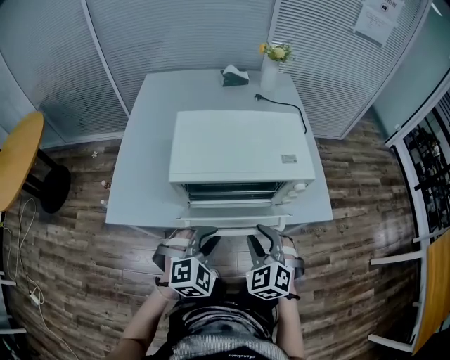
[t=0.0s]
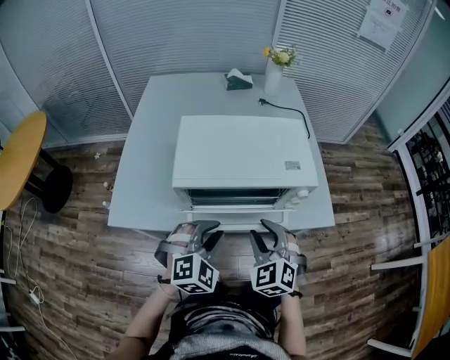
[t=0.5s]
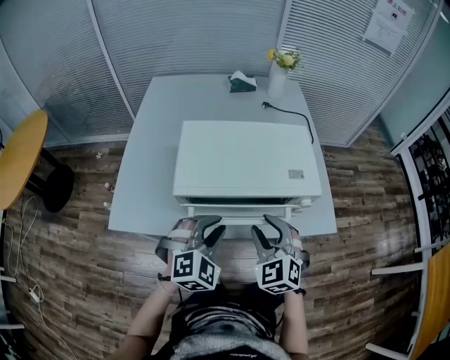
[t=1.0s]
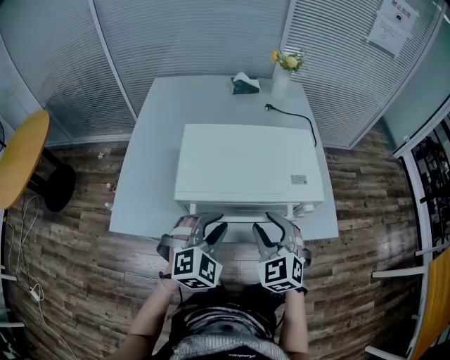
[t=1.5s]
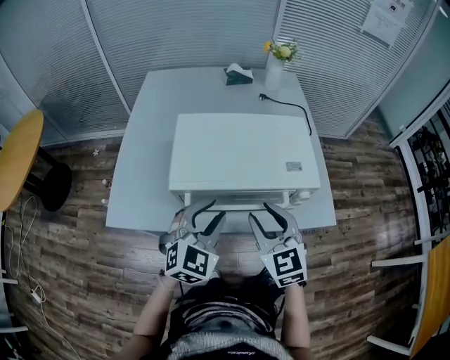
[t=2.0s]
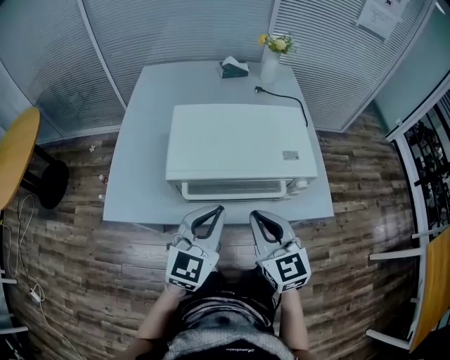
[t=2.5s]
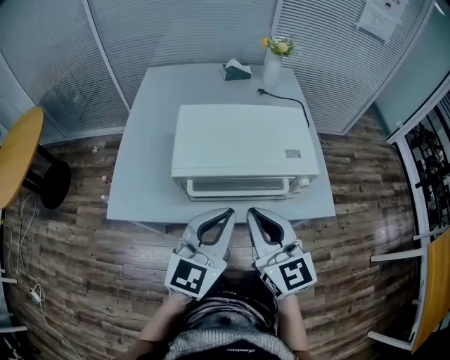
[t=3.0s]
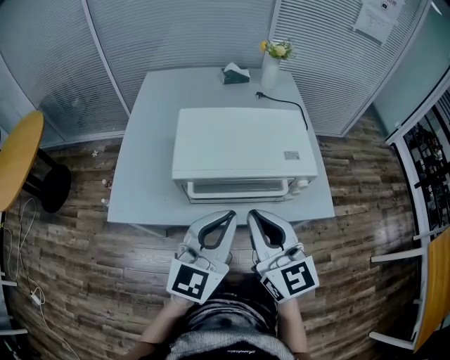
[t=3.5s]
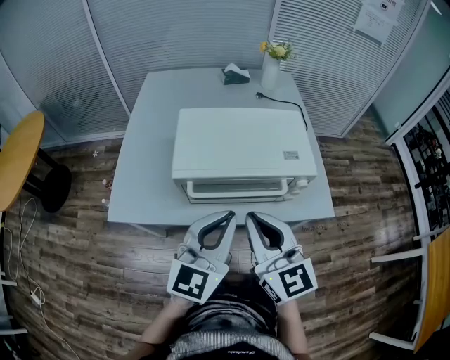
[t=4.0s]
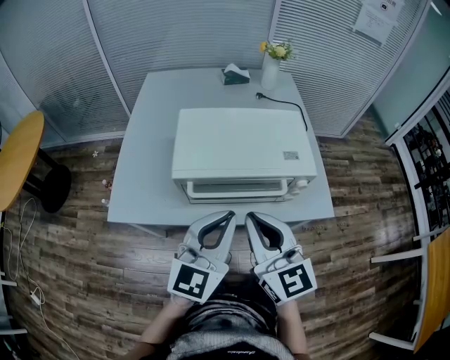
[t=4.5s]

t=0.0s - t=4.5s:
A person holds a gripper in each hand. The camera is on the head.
t=0.0s - t=2.0s: The left gripper heads forward and upward, covering approximately 10 cm, and rotates about 20 degrees. The right gripper goes approximately 10 cm upward and forward, and rotates some 30 degrees.
t=2.0s - t=4.5s: The two grippers go some 10 cm upward and backward. The left gripper rotates roughly 30 degrees, and closes. Meanwhile the right gripper rotates some 20 degrees, and closes its fingers.

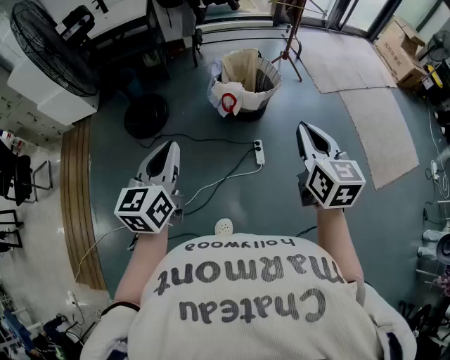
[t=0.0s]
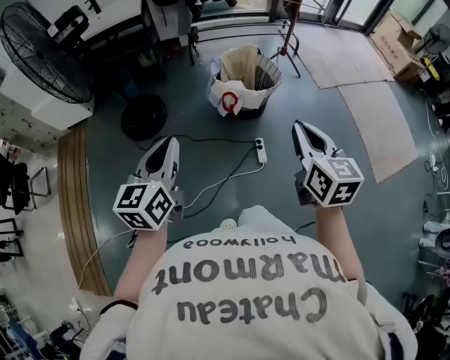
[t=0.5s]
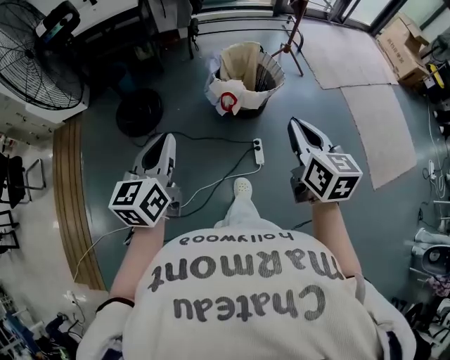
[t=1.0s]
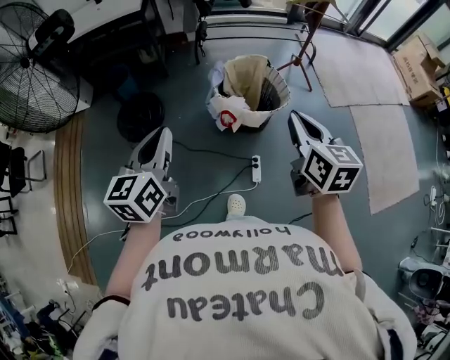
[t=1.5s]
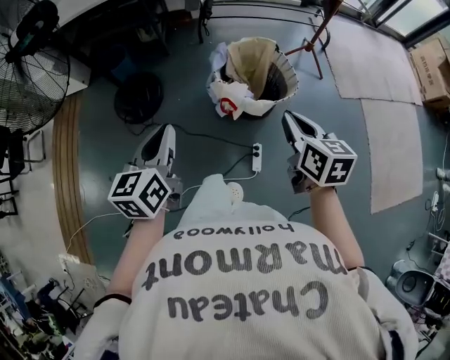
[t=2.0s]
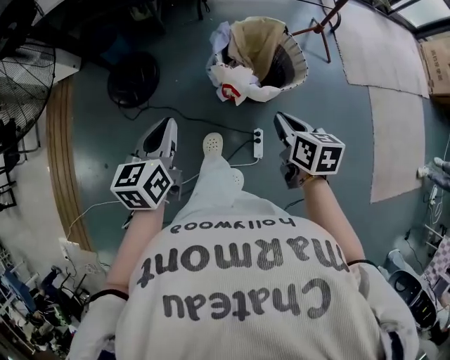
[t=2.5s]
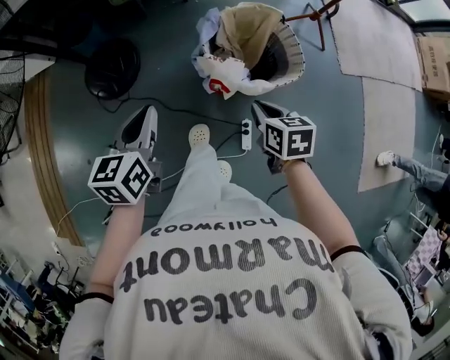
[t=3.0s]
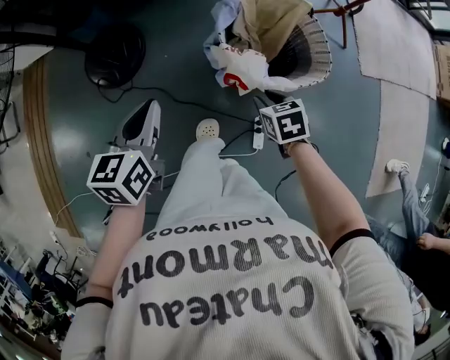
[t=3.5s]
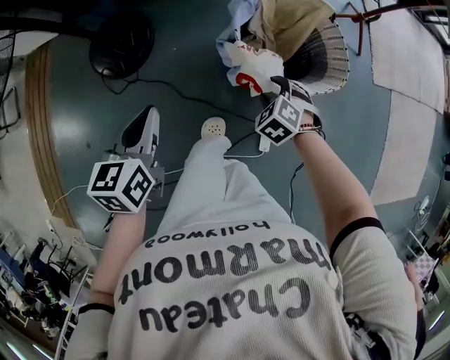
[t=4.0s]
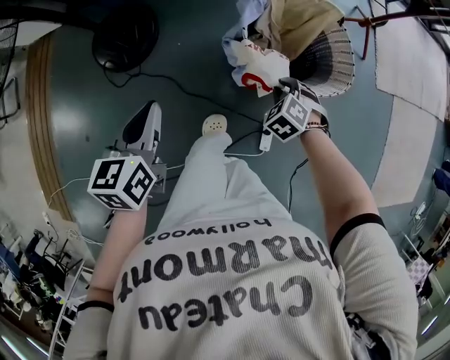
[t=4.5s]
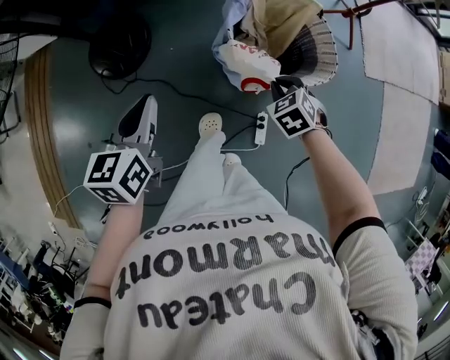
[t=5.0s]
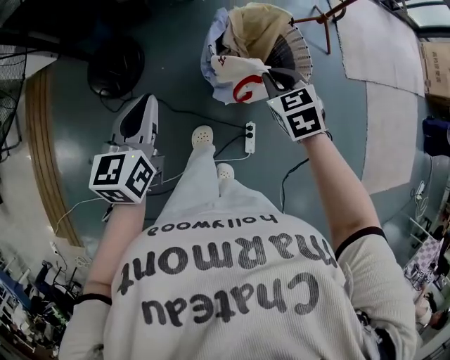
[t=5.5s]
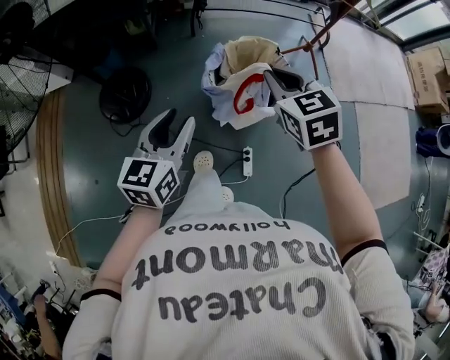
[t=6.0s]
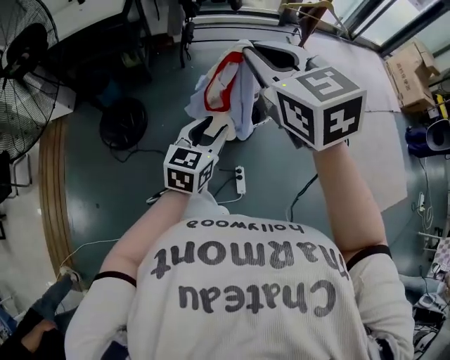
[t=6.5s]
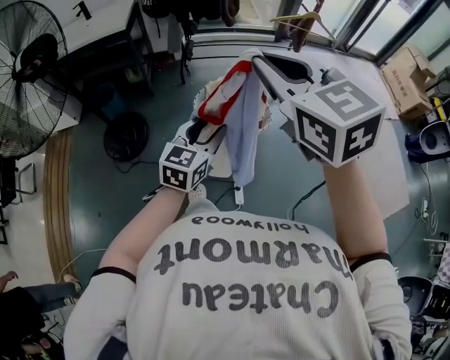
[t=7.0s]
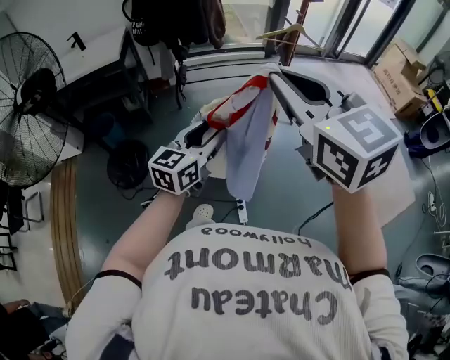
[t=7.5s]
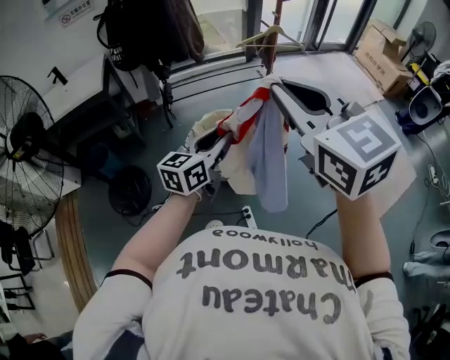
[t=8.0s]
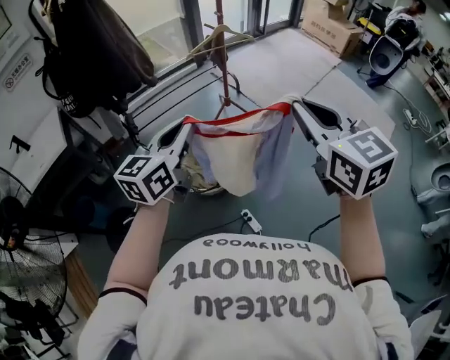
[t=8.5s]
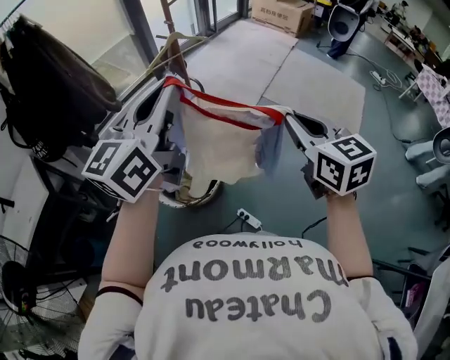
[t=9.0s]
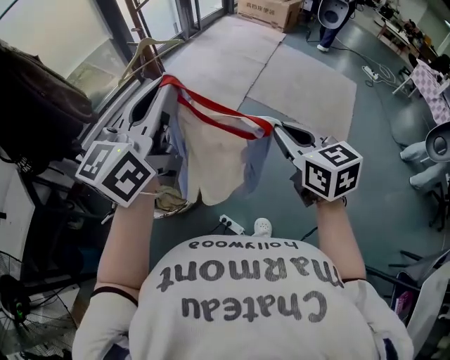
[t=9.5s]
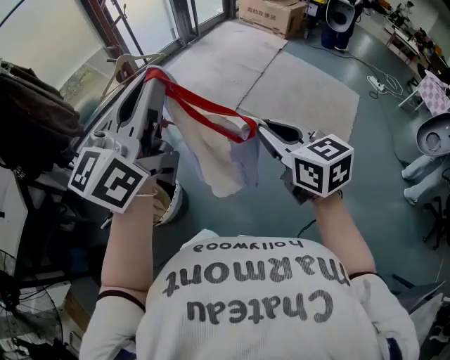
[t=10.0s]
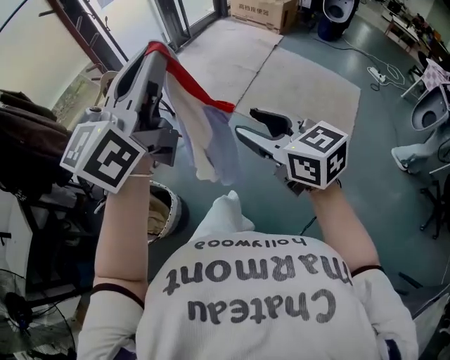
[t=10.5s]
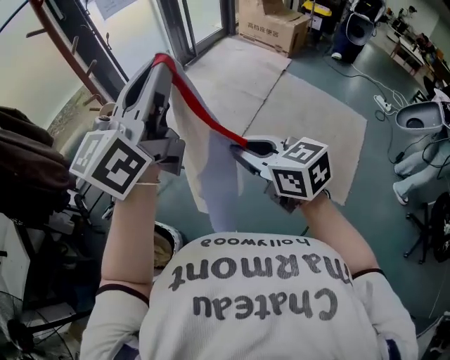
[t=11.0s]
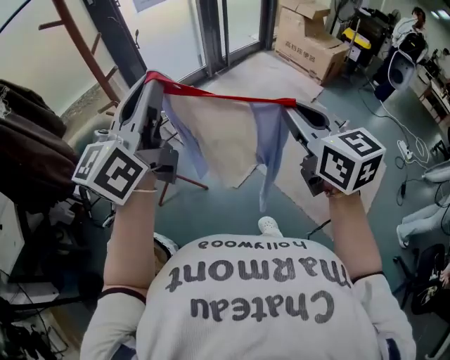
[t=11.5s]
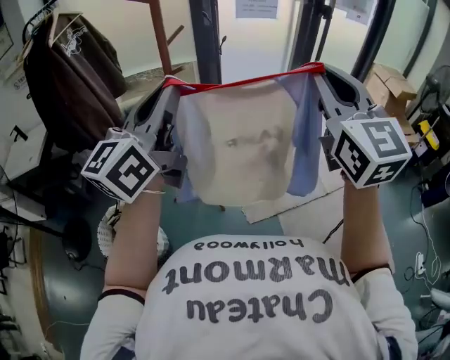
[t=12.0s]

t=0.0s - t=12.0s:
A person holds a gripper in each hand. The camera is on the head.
t=0.0s - t=2.0s: The right gripper shifts roughly 30 cm forward and downward, and rotates approximately 20 degrees. The left gripper shifts approximately 25 cm forward.
t=2.0s - t=4.0s: The right gripper heads downward and forward, covering approximately 40 cm, rolls counterclockwise, seen from behind, by approximately 60 degrees, and opens. The left gripper goes about 30 cm downward and forward.
t=4.0s - t=6.0s: The right gripper is displaced upward by approximately 40 cm, points its fingers roughly 30 degrees further upward, and closes up. The left gripper travels upward and to the right by approximately 20 cm, turns by approximately 20 degrees, and opens its fingers.
t=6.0s - t=8.0s: The left gripper is displaced to the right and upward by roughly 25 cm, and swivels some 30 degrees, while the right gripper shifts approximately 35 cm upward and to the right, and rotates some 30 degrees.
t=8.0s - t=10.0s: The left gripper changes place by about 40 cm, and swivels about 30 degrees; the right gripper changes place by about 40 cm, and swivels about 40 degrees.
t=10.0s - t=12.0s: Both grippers are carried roughly 50 cm. The right gripper swivels some 50 degrees, and opens, then closes again; the left gripper rotates some 40 degrees.

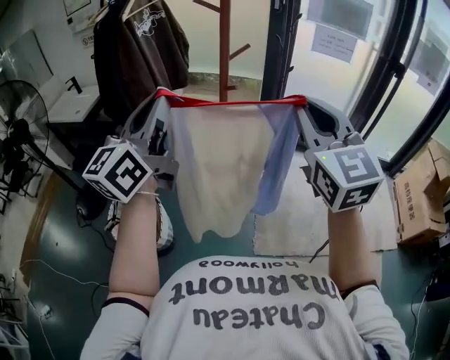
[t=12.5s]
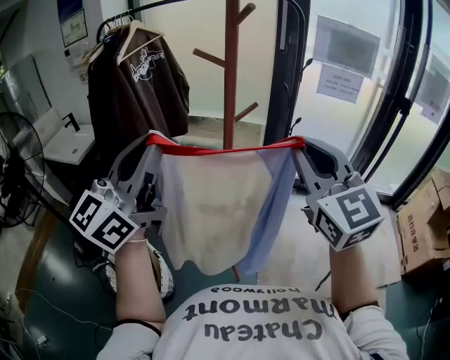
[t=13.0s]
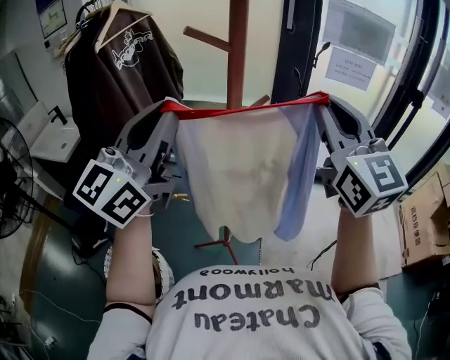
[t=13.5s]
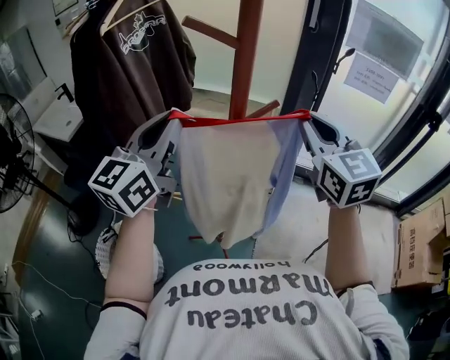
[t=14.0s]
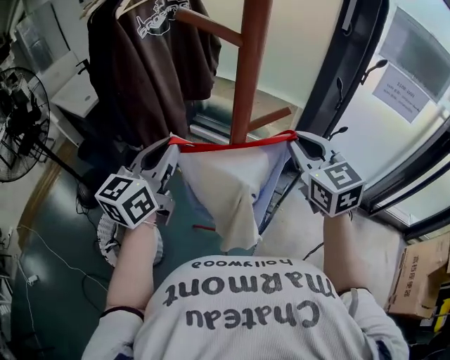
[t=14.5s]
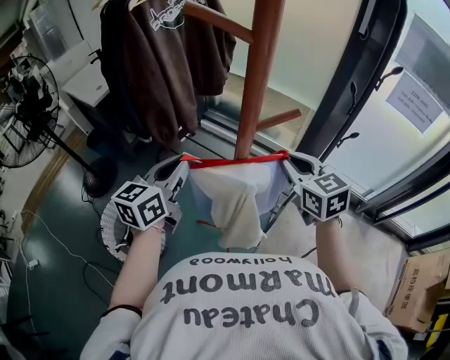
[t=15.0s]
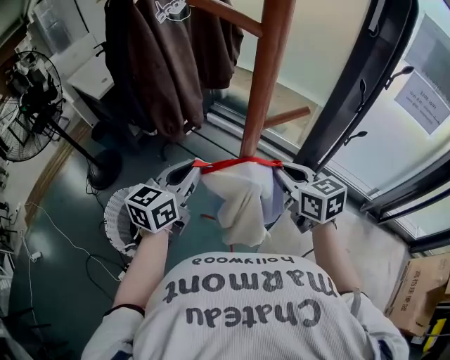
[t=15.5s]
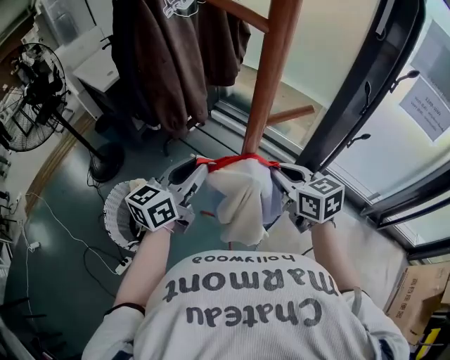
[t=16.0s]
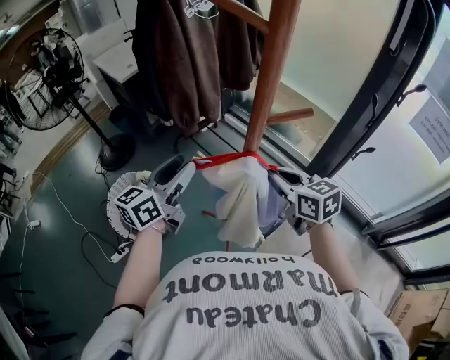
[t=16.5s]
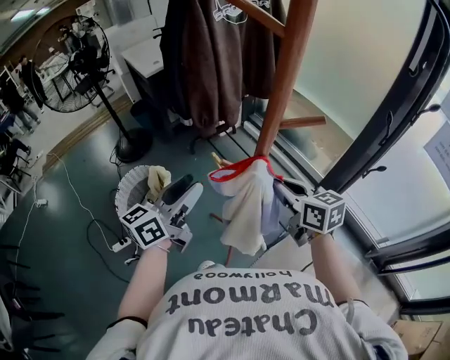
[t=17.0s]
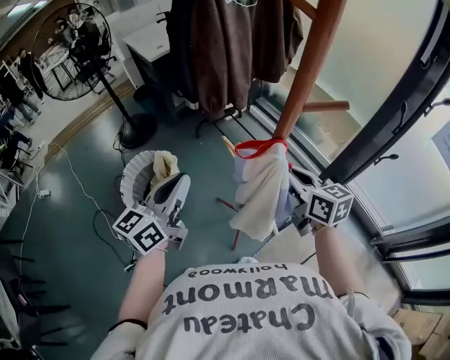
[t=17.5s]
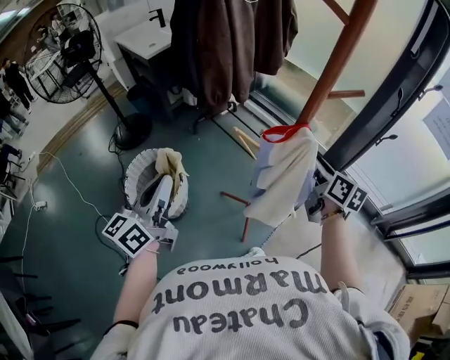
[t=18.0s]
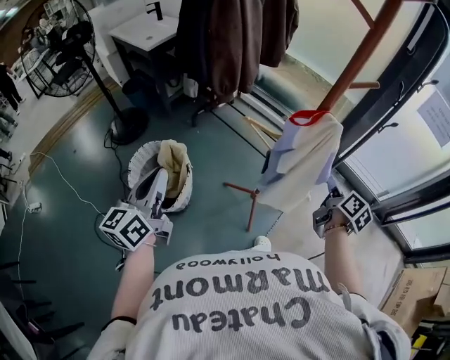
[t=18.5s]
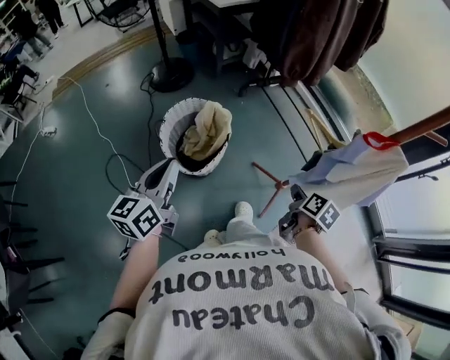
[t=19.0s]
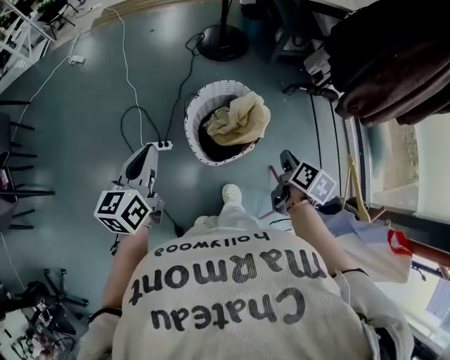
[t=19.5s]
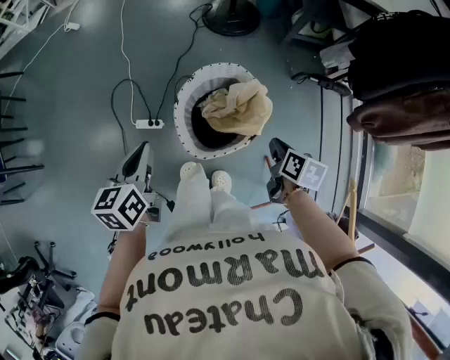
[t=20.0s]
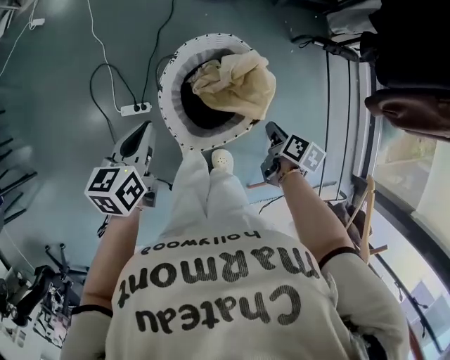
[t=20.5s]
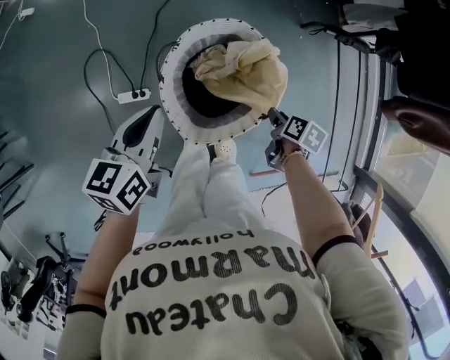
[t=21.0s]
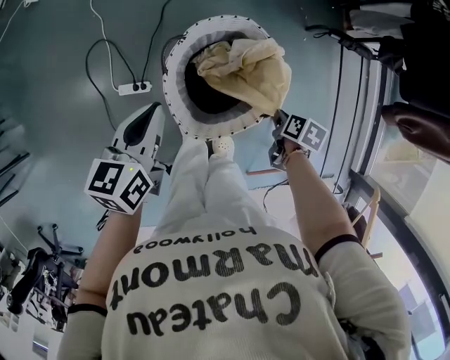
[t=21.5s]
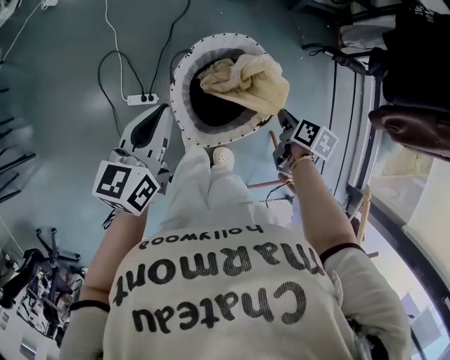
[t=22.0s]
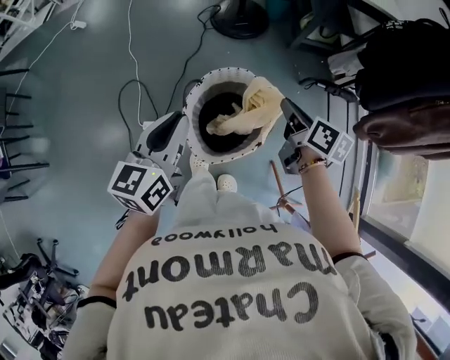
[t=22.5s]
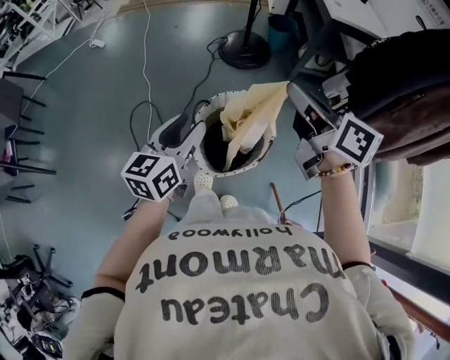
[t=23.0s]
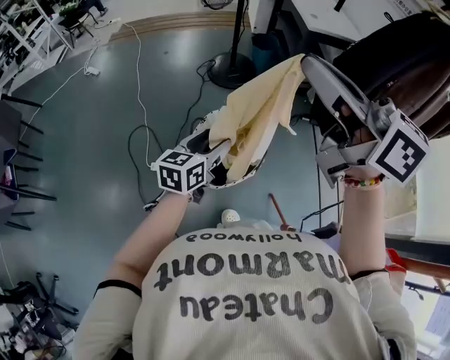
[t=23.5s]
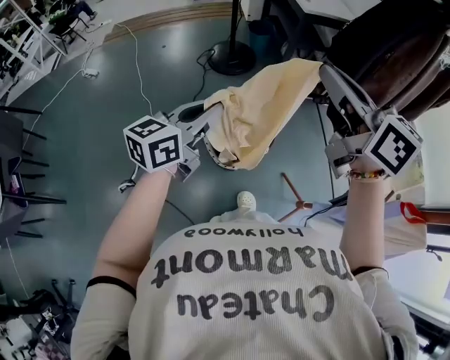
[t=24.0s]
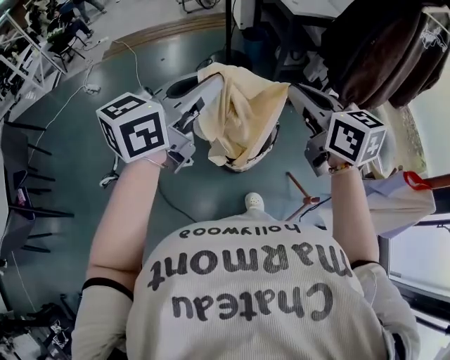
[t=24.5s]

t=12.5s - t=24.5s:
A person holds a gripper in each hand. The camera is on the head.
t=12.5s - t=14.5s: The right gripper heads forward, covering about 40 cm, and rotates some 30 degrees; the left gripper goes roughly 35 cm forward and downward, and turns by some 20 degrees.
t=14.5s - t=16.5s: The left gripper moves downward and backward, approximately 10 cm, and opens up, while the right gripper is displaced downward by some 15 cm, and changes its angle by some 30 degrees.
t=16.5s - t=18.5s: The left gripper moves to the left and backward, approximately 30 cm, and closes. The right gripper travels backward and downward by roughly 15 cm, rotates roughly 60 degrees, and opens, then closes again.
t=18.5s - t=20.5s: The right gripper ends up roughly 70 cm from where it was, and changes its angle by approximately 70 degrees; the left gripper moves downward, roughly 30 cm, and angles its fingers downward, by some 40 degrees.
t=20.5s - t=22.5s: The right gripper travels upward and forward by roughly 25 cm, rotates about 30 degrees, and opens, then closes once more, while the left gripper travels upward by some 15 cm, and turns by approximately 20 degrees.
t=22.5s - t=24.5s: The grippers both shift upward by about 25 cm. The right gripper turns by approximately 40 degrees; the left gripper swivels about 40 degrees, and opens and closes again.
